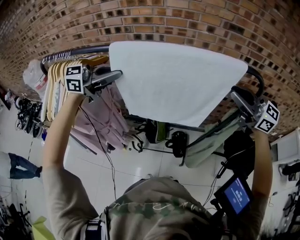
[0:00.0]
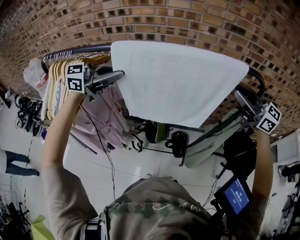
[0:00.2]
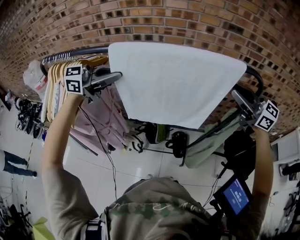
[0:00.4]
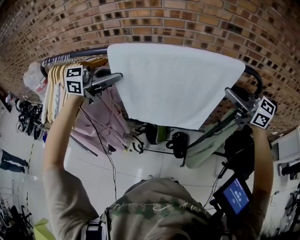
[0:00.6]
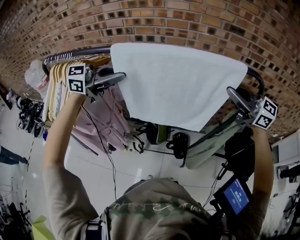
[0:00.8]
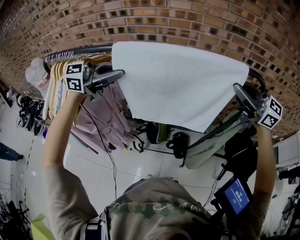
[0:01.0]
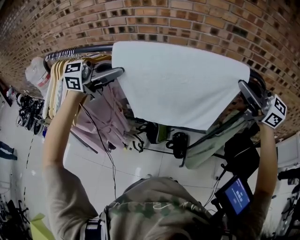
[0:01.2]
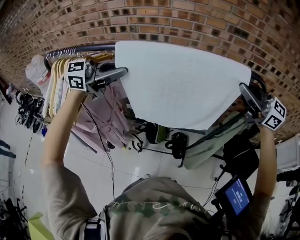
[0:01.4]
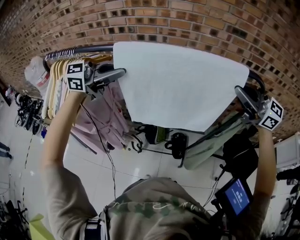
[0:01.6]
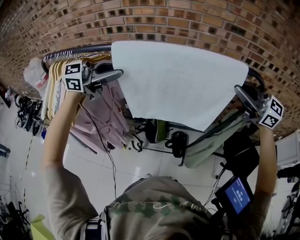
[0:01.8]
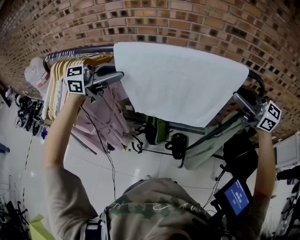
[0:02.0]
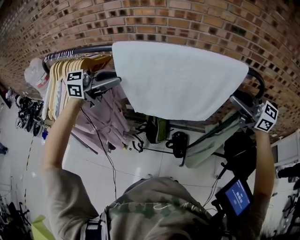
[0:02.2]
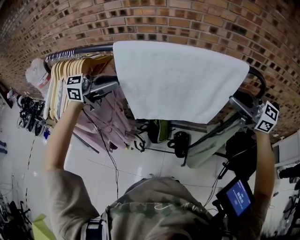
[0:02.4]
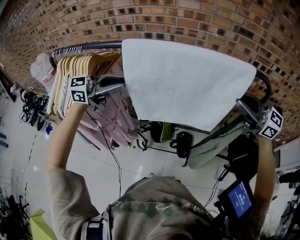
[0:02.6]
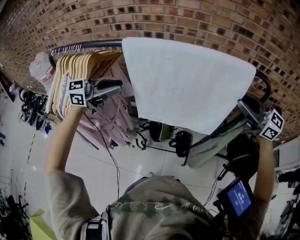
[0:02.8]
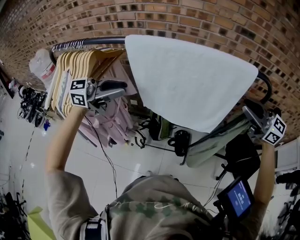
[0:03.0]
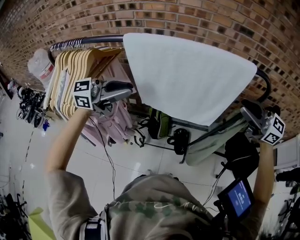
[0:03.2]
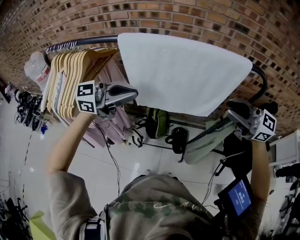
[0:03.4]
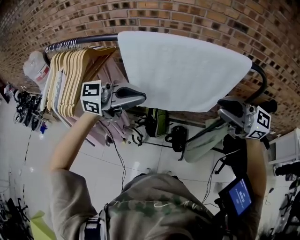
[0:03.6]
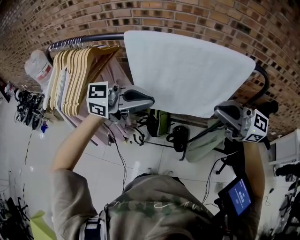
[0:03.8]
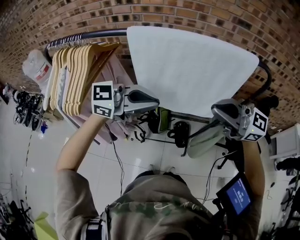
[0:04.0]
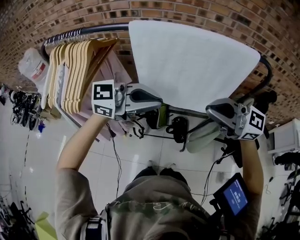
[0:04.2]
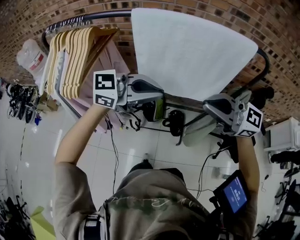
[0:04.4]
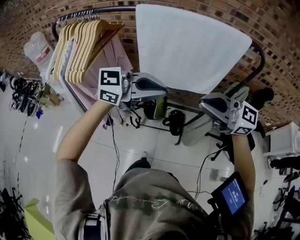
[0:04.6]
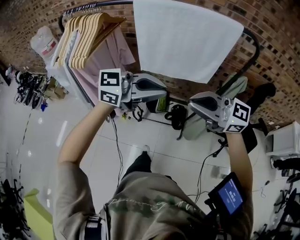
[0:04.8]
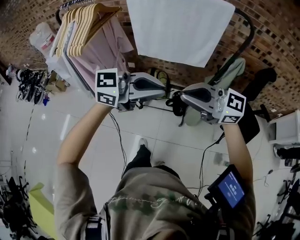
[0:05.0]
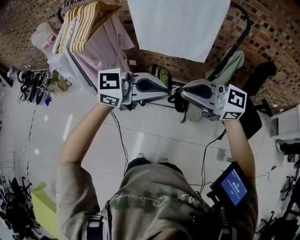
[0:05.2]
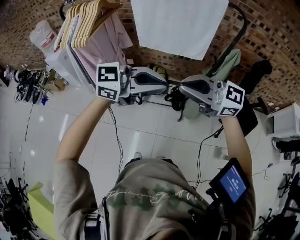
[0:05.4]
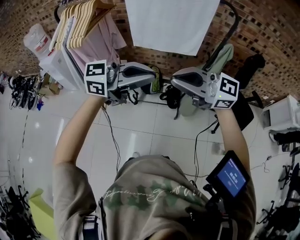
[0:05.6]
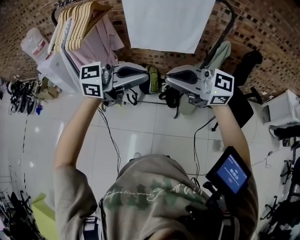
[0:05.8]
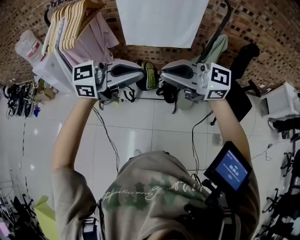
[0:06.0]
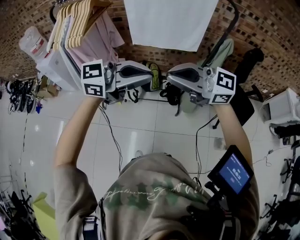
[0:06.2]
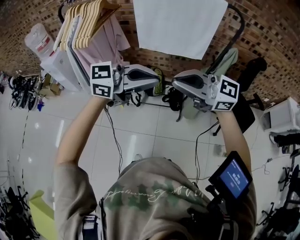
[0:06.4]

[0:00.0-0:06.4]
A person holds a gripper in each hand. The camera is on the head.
0.0 to 1.6 s: The grippers make only small movements.
1.6 to 3.2 s: The grippers both shift downward by about 5 cm.
3.2 to 4.8 s: The right gripper shifts by approximately 30 cm; the left gripper ends up approximately 25 cm from where it was.
4.8 to 6.4 s: The right gripper ends up roughly 10 cm from where it was. The left gripper ends up some 10 cm from where it was.

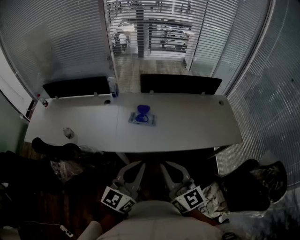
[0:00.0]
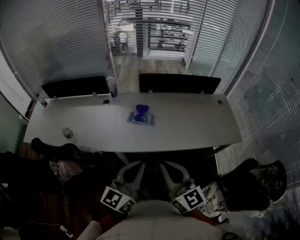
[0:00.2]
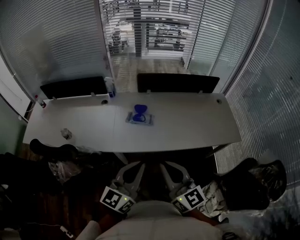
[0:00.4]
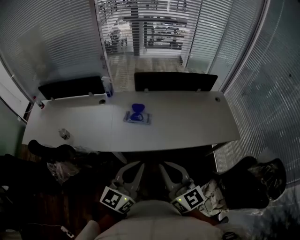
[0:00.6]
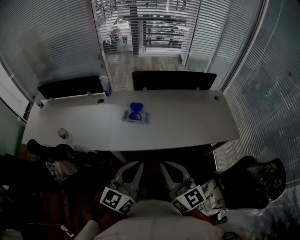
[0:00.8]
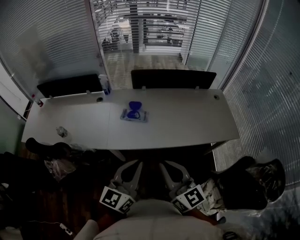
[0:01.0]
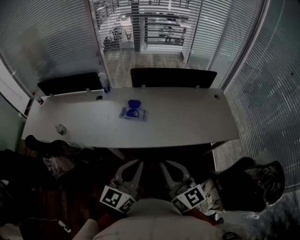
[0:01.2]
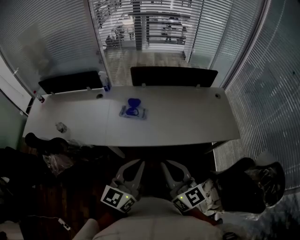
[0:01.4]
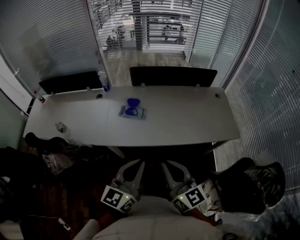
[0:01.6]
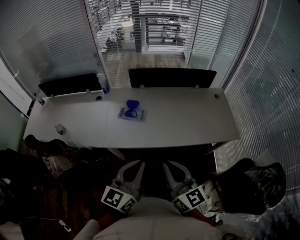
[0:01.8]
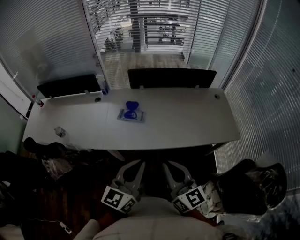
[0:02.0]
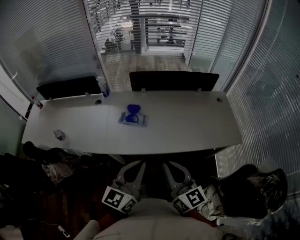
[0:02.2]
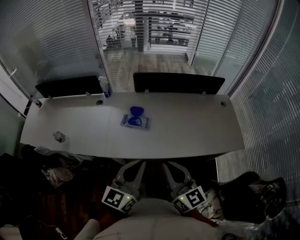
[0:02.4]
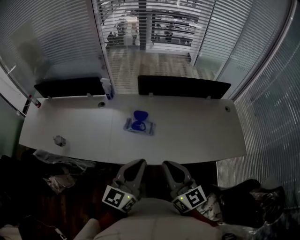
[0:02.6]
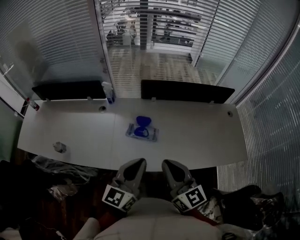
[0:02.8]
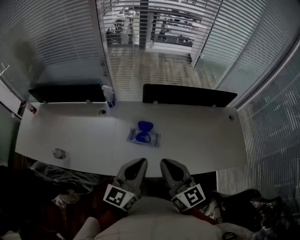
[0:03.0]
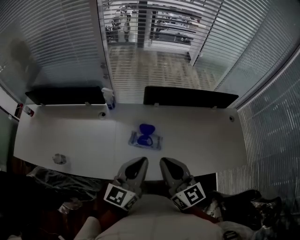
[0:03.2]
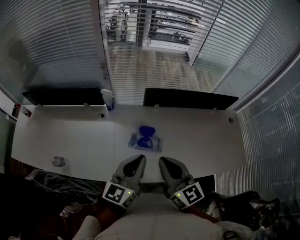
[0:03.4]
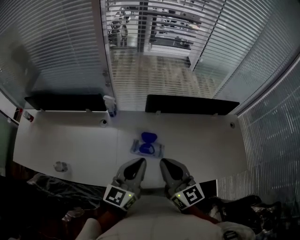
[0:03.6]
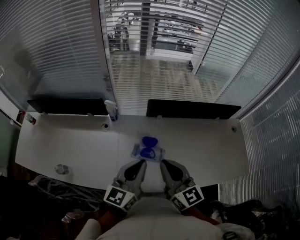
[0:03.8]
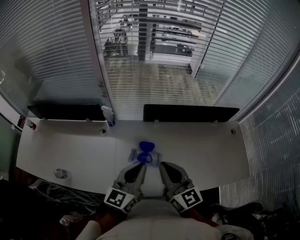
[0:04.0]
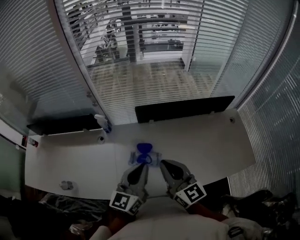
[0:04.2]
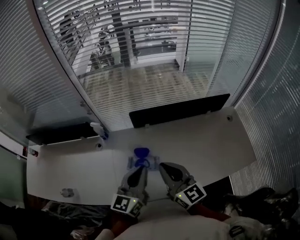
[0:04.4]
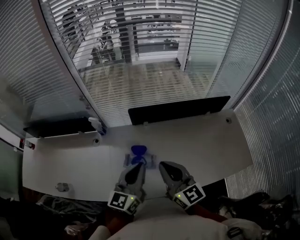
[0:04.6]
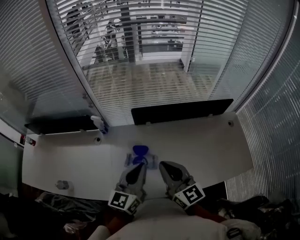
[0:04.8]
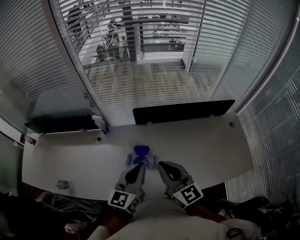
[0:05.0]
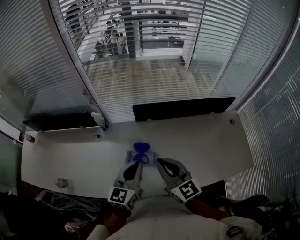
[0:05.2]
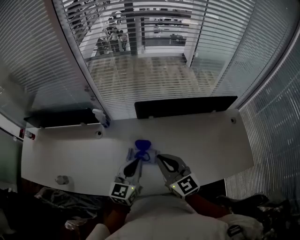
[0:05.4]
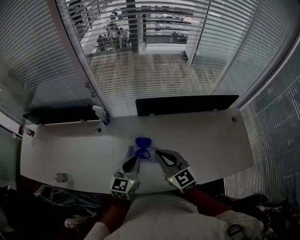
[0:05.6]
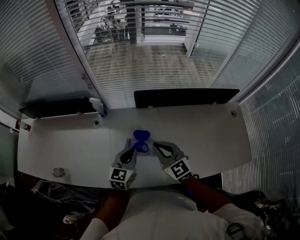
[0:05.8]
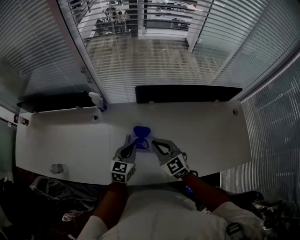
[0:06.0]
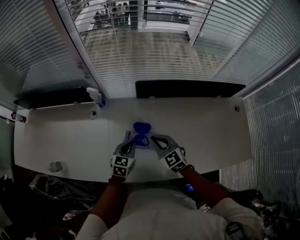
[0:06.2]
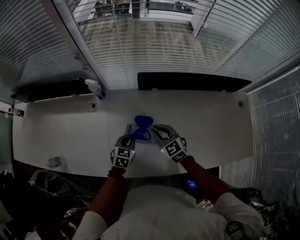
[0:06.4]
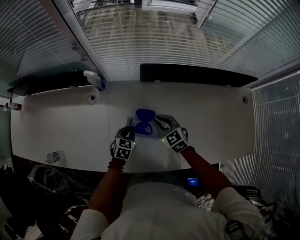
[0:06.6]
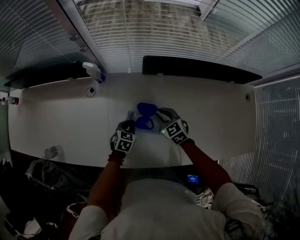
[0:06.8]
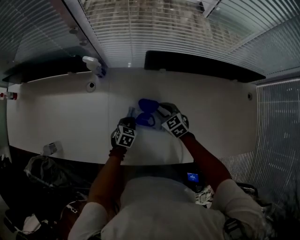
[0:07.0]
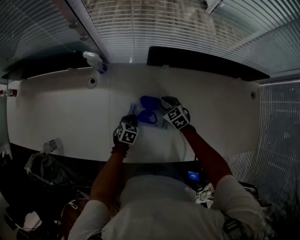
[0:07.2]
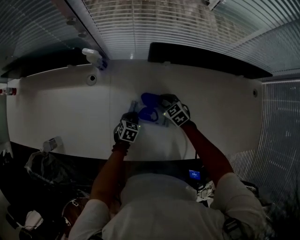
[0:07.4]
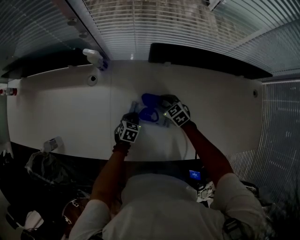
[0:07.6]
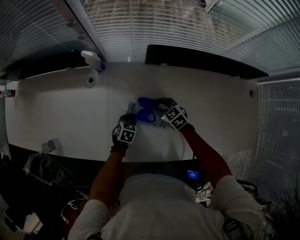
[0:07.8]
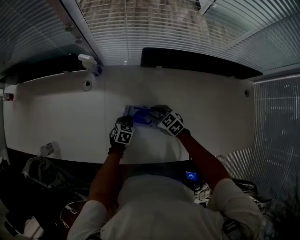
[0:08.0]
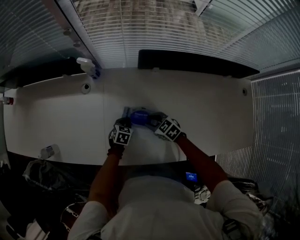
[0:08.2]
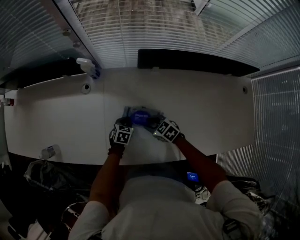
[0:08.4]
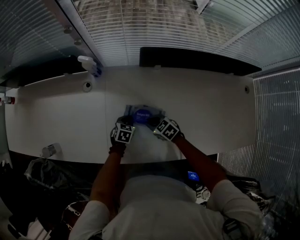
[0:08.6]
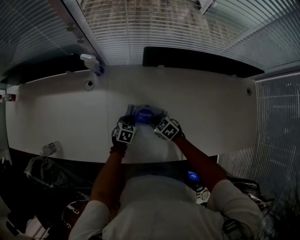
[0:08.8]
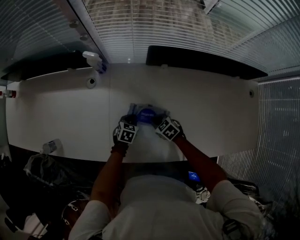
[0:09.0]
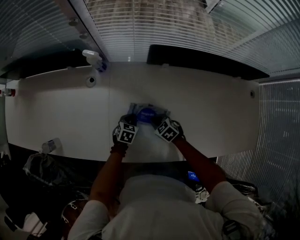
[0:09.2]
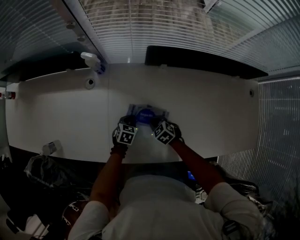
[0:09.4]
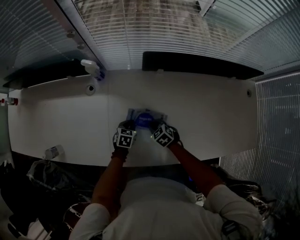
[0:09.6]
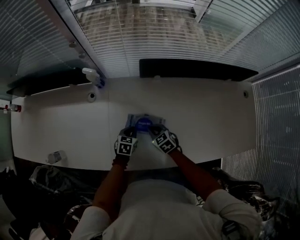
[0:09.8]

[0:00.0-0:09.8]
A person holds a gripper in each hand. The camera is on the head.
0.0 to 1.4 s: The grippers both shift to the right by roughly 10 cm.
1.4 to 2.8 s: Both grippers travel together forward and to the left, approximately 20 cm.
2.8 to 4.2 s: The grippers both shift forward by approximately 15 cm.
4.2 to 5.6 s: Both grippers travel together downward, roughly 10 cm.
5.6 to 7.0 s: The grippers both shift downward by roughly 30 cm. The right gripper angles its fingers downward, by some 30 degrees, and opens up, while the left gripper tilts its fingers some 40 degrees downward.
7.0 to 8.4 s: The right gripper travels backward and to the left by about 10 cm, and turns by approximately 20 degrees.
8.4 to 9.8 s: The right gripper closes.

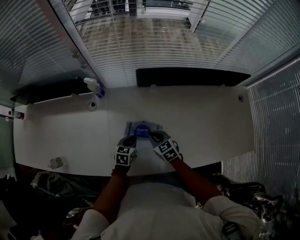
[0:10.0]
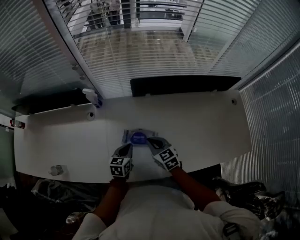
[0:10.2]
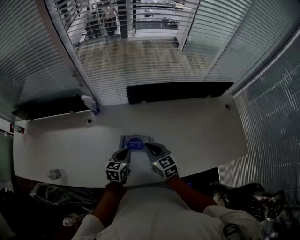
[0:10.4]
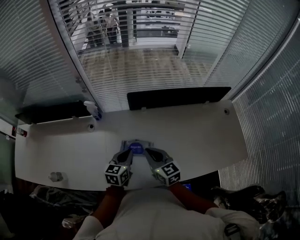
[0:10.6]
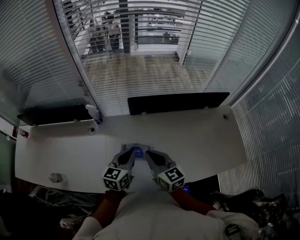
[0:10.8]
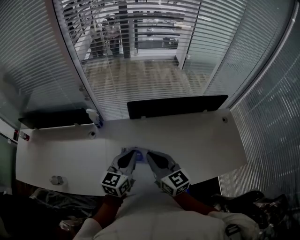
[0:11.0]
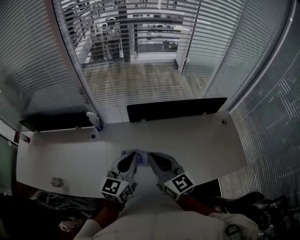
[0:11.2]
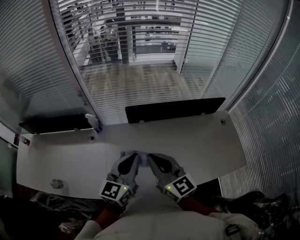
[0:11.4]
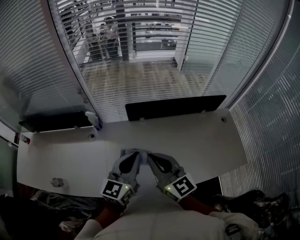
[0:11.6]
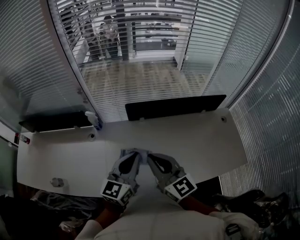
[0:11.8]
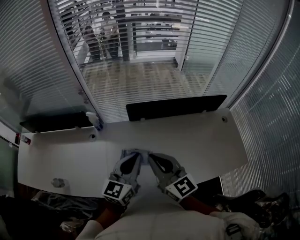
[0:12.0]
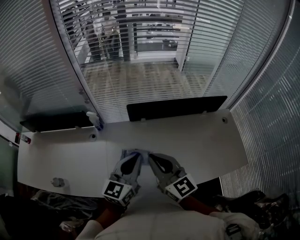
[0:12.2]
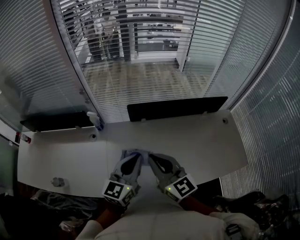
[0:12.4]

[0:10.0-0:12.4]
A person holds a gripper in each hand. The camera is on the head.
10.0 to 11.2 s: Both grippers travel together upward, approximately 35 cm. The right gripper points its fingers about 40 degrees further upward, while the left gripper points its fingers approximately 40 degrees further upward.
11.2 to 12.4 s: The grippers stay close to where they were, moving slightly.

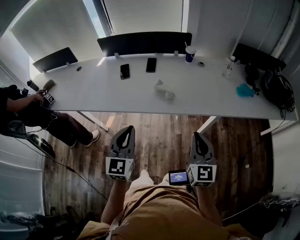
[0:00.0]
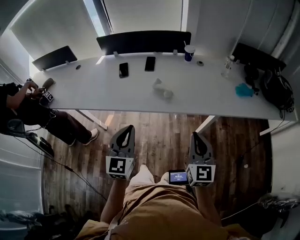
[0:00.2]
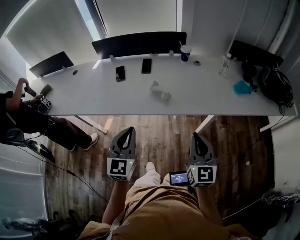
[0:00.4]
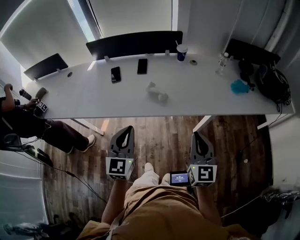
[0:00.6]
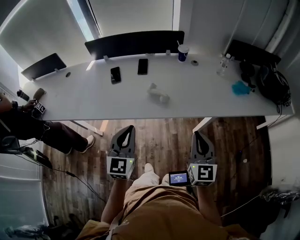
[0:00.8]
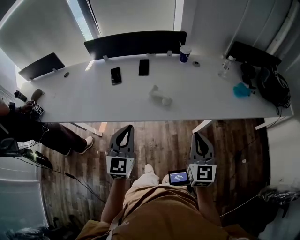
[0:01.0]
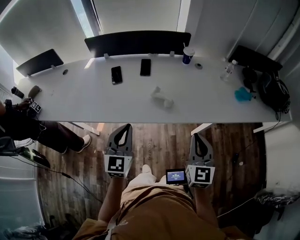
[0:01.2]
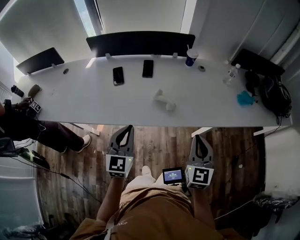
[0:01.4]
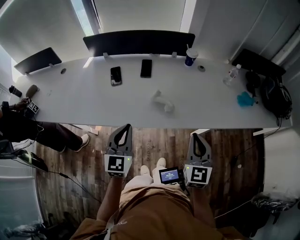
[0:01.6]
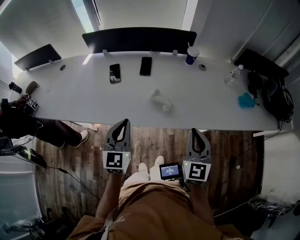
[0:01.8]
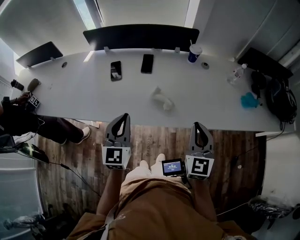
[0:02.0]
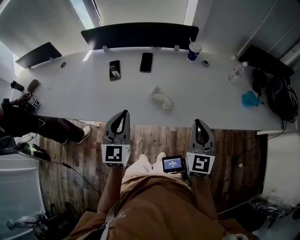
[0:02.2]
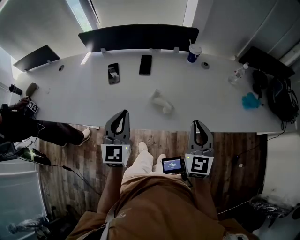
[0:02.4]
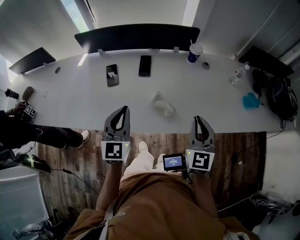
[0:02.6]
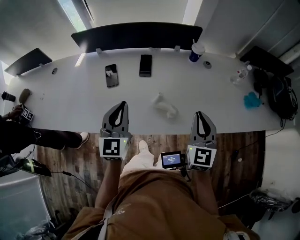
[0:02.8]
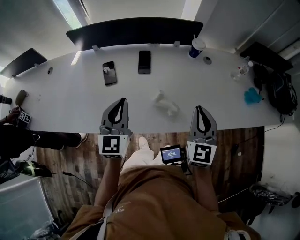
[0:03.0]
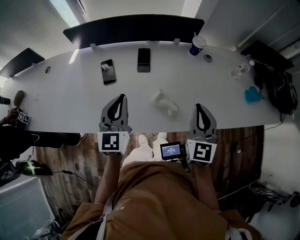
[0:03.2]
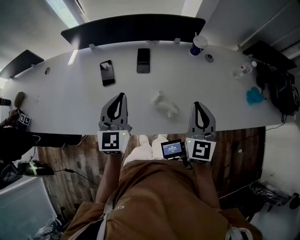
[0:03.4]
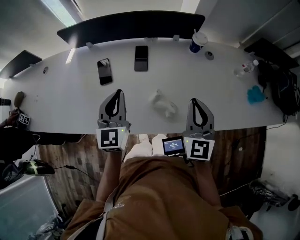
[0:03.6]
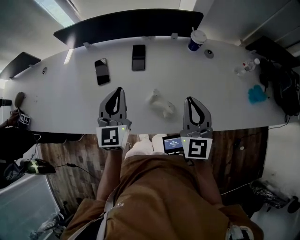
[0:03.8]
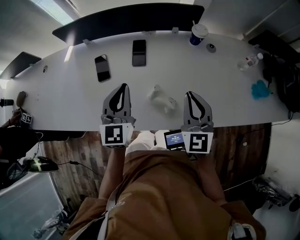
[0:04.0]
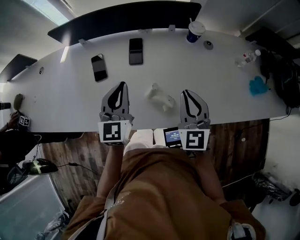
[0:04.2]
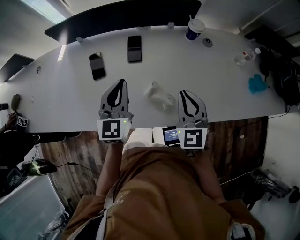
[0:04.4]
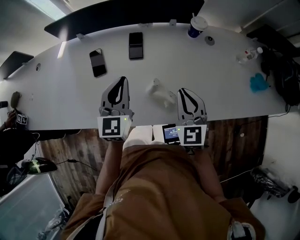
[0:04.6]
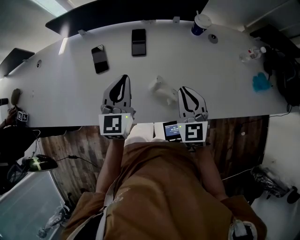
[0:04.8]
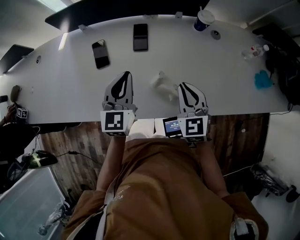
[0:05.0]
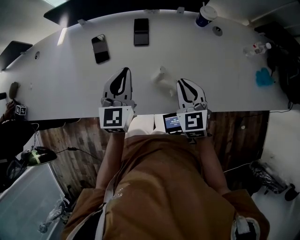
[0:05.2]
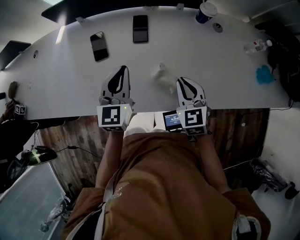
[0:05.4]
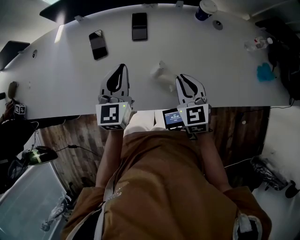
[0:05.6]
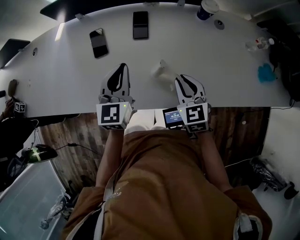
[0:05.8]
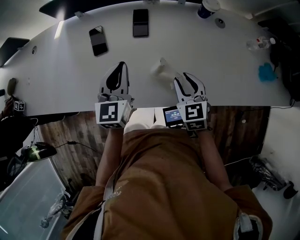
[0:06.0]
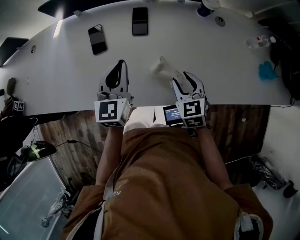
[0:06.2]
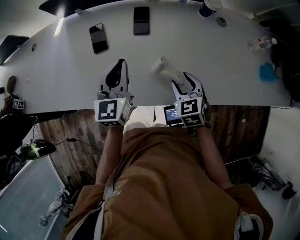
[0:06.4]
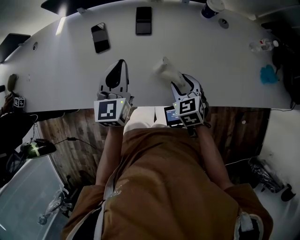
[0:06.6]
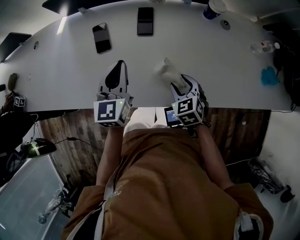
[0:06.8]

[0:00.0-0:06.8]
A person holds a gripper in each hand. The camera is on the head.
0.0 to 1.4 s: The right gripper shifts some 10 cm forward; the left gripper is displaced forward, to the left and downward by approximately 15 cm.
1.4 to 2.8 s: The grippers both shift forward by about 20 cm.
2.8 to 4.0 s: Both grippers move forward, some 10 cm.
4.0 to 5.4 s: The right gripper travels downward and to the left by about 10 cm, and turns by some 20 degrees. Meanwhile the left gripper heads downward, covering about 5 cm.
5.4 to 6.8 s: The right gripper goes about 10 cm downward, and opens its fingers.
